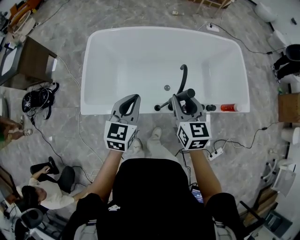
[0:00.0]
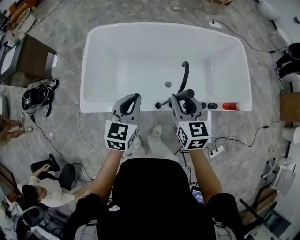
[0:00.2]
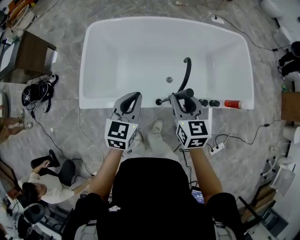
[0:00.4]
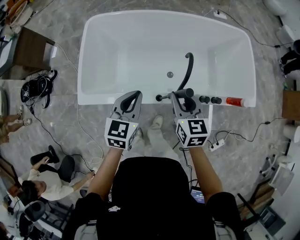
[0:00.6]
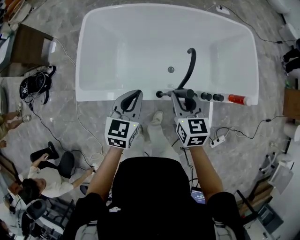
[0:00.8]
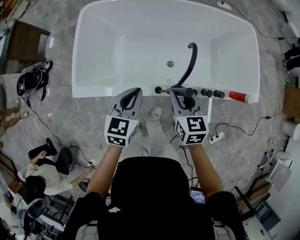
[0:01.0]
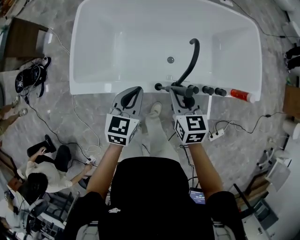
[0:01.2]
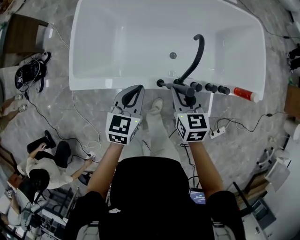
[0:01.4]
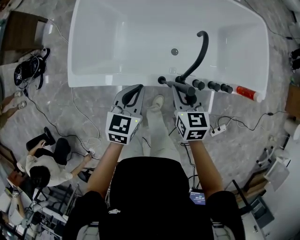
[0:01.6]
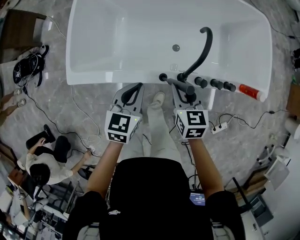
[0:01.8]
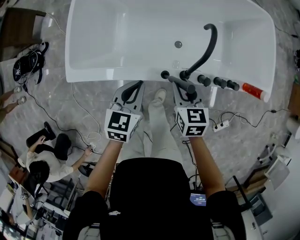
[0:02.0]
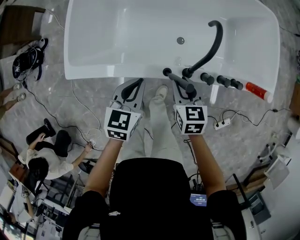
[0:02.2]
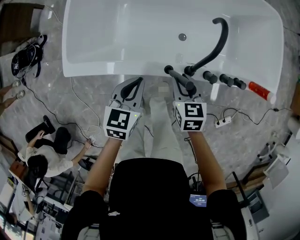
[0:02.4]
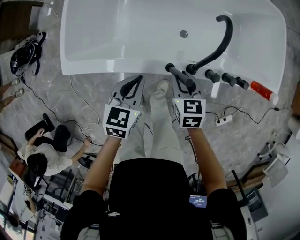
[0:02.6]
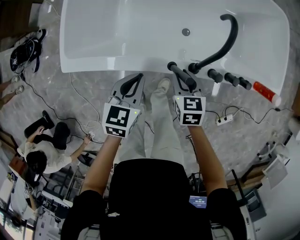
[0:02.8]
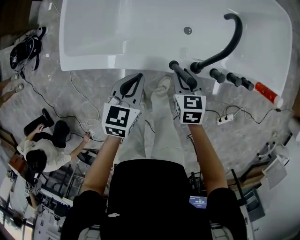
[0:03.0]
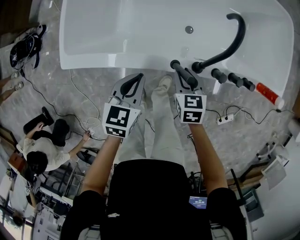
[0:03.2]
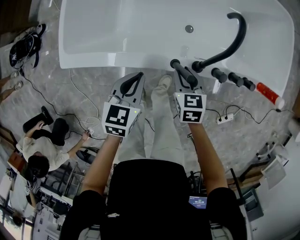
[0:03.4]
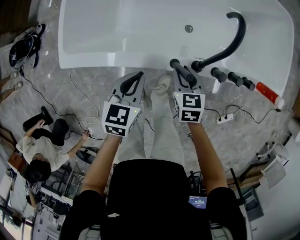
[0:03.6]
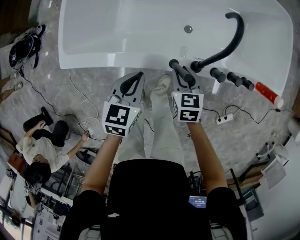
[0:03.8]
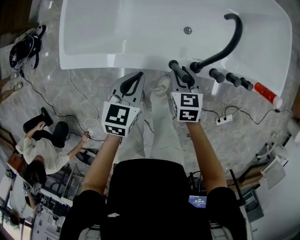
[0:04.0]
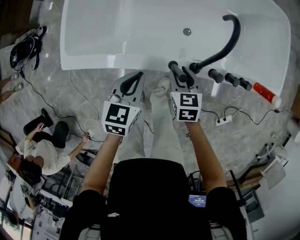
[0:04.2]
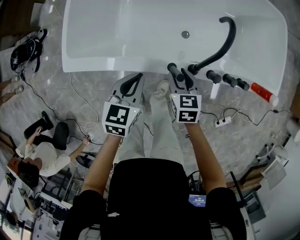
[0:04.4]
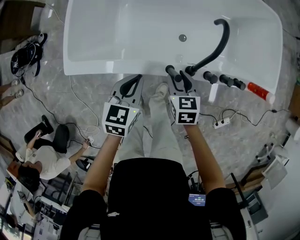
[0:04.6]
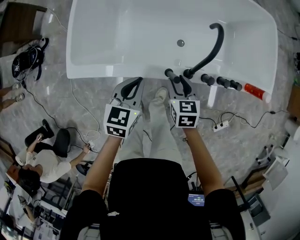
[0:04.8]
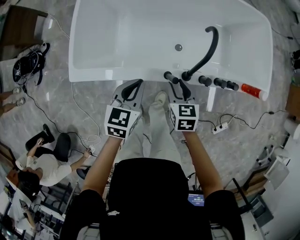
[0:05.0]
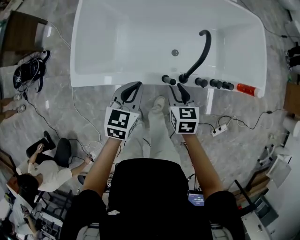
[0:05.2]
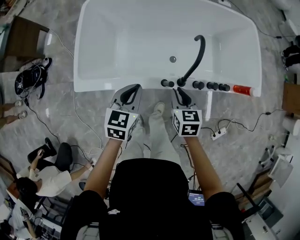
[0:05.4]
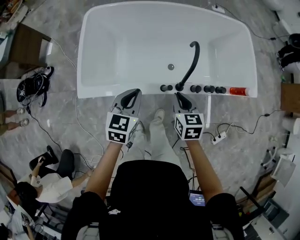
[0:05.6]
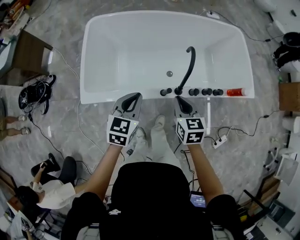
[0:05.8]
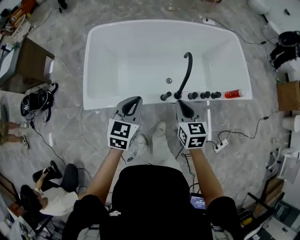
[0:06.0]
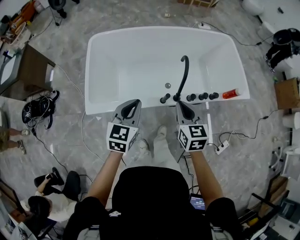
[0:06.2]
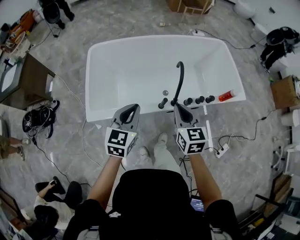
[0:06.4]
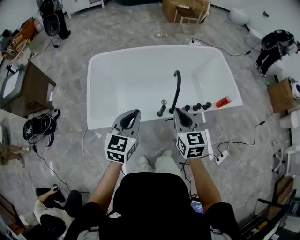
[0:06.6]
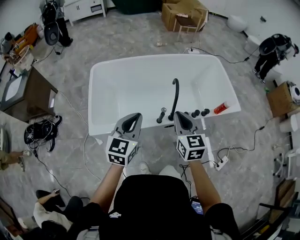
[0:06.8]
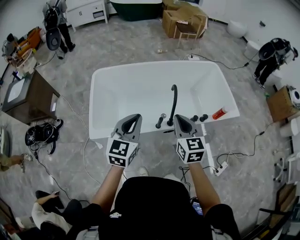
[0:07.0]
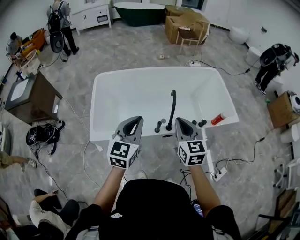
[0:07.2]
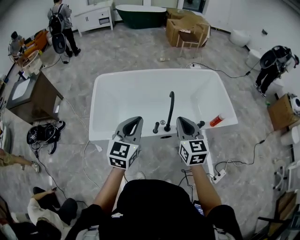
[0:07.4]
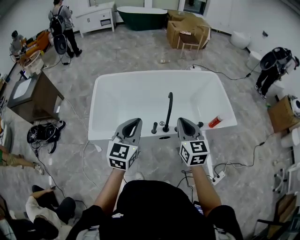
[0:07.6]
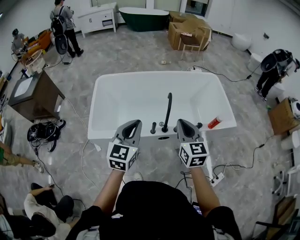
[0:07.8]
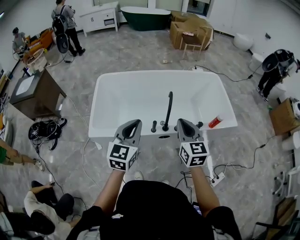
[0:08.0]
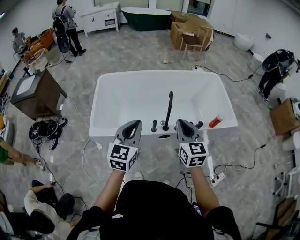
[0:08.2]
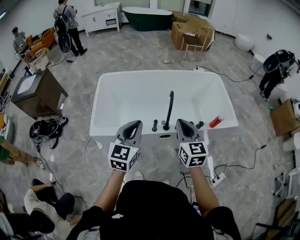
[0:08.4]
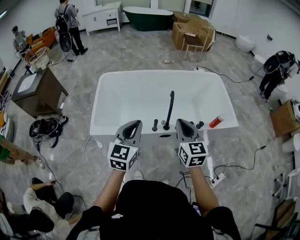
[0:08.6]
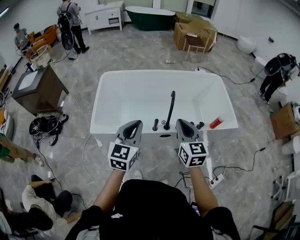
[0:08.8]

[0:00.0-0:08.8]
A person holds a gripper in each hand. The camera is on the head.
0.0 to 1.4 s: The two grippers go approximately 15 cm downward.
1.4 to 3.0 s: Both grippers move downward, about 15 cm.
3.0 to 4.4 s: The grippers move only a little.
4.4 to 5.8 s: Both grippers move upward, roughly 20 cm. The right gripper closes up.
5.8 to 7.4 s: Both grippers move upward, about 20 cm. The left gripper changes its angle by approximately 20 degrees. The right gripper changes its angle by roughly 20 degrees.
7.4 to 8.8 s: The left gripper moves roughly 5 cm.

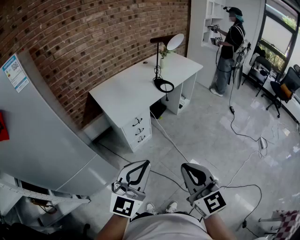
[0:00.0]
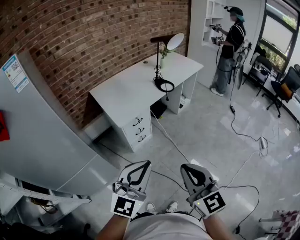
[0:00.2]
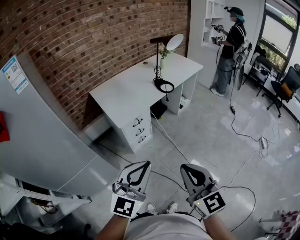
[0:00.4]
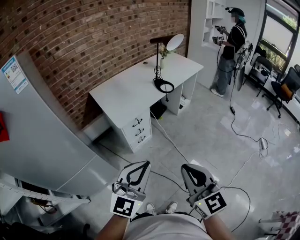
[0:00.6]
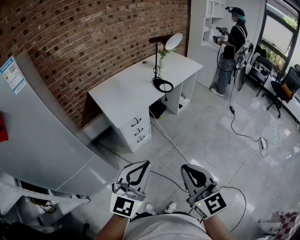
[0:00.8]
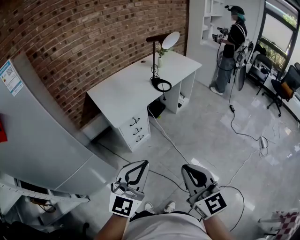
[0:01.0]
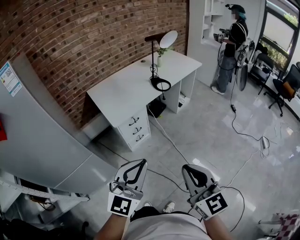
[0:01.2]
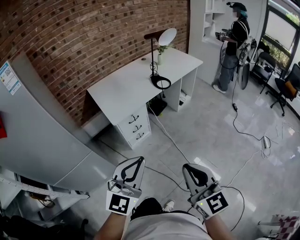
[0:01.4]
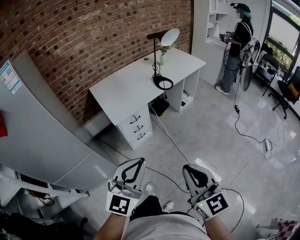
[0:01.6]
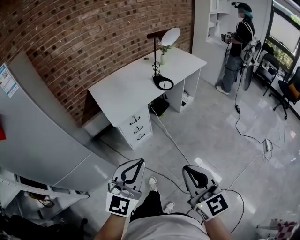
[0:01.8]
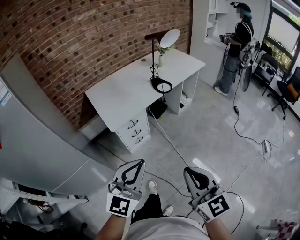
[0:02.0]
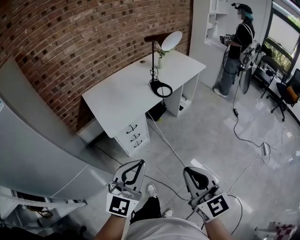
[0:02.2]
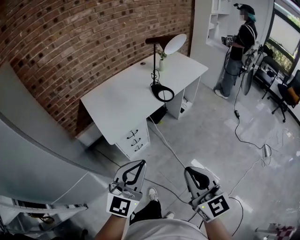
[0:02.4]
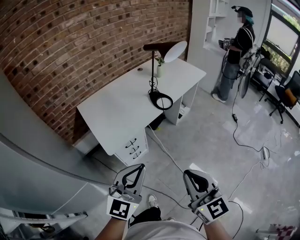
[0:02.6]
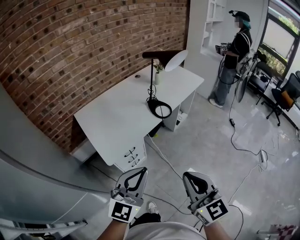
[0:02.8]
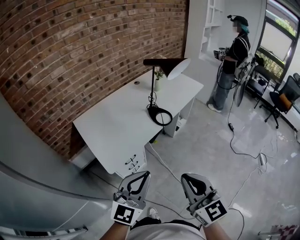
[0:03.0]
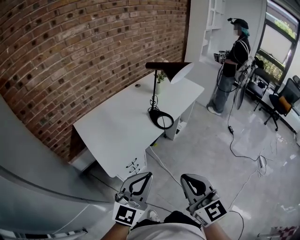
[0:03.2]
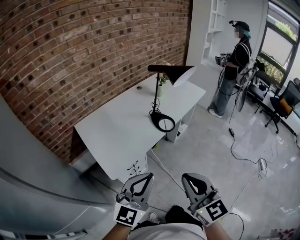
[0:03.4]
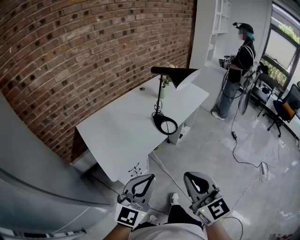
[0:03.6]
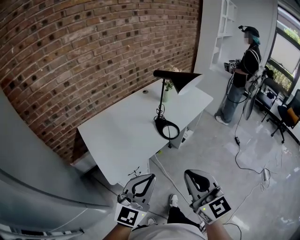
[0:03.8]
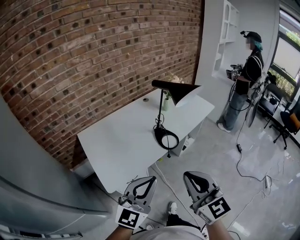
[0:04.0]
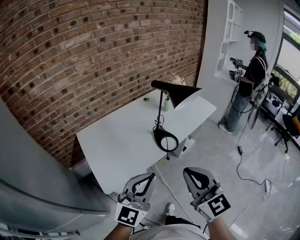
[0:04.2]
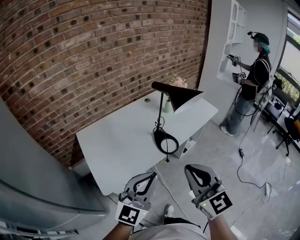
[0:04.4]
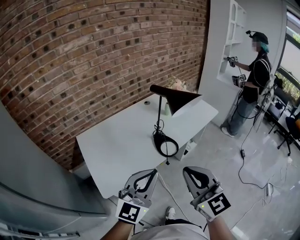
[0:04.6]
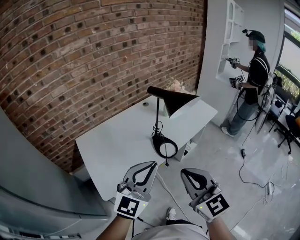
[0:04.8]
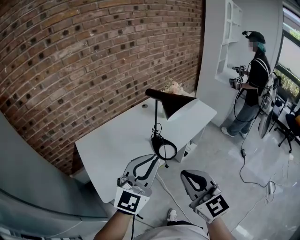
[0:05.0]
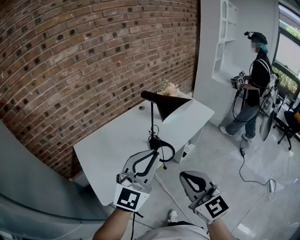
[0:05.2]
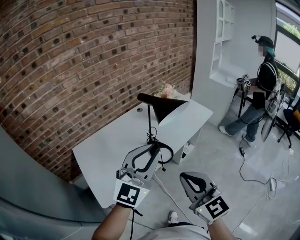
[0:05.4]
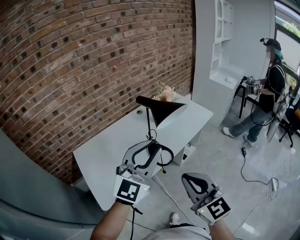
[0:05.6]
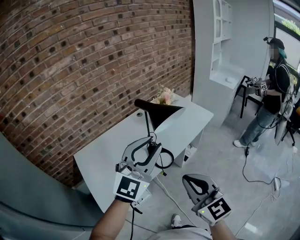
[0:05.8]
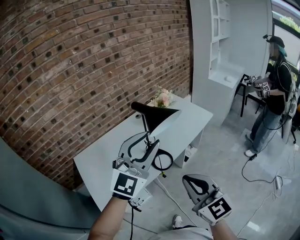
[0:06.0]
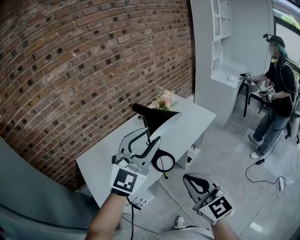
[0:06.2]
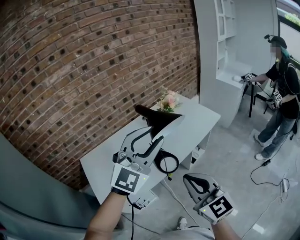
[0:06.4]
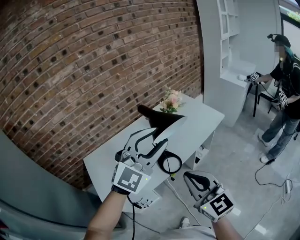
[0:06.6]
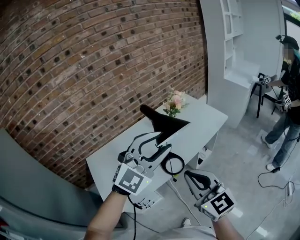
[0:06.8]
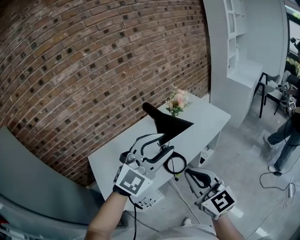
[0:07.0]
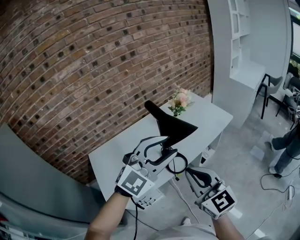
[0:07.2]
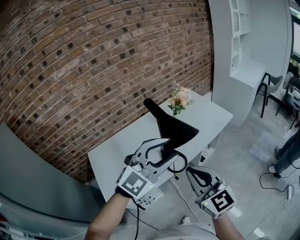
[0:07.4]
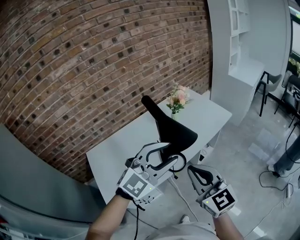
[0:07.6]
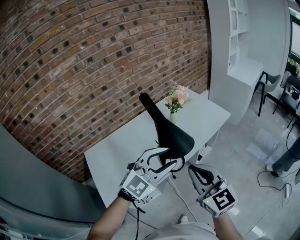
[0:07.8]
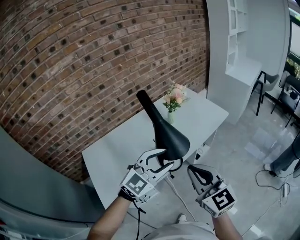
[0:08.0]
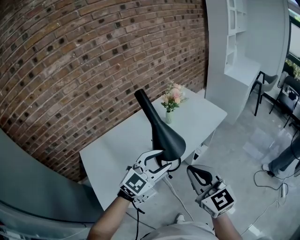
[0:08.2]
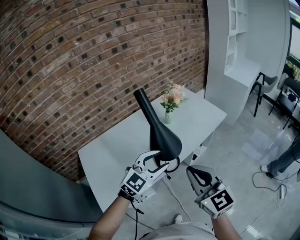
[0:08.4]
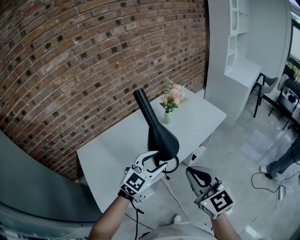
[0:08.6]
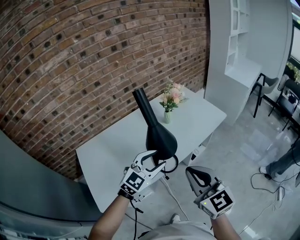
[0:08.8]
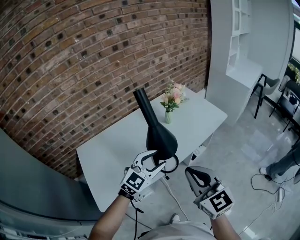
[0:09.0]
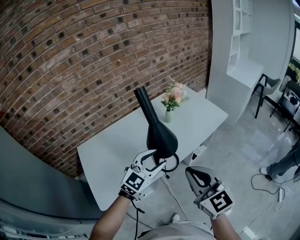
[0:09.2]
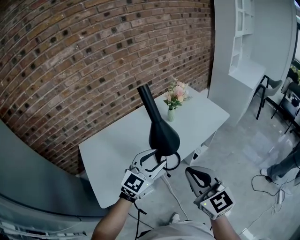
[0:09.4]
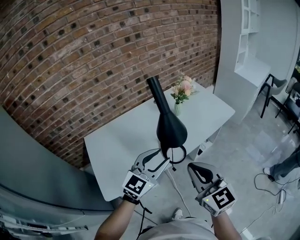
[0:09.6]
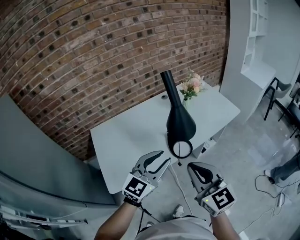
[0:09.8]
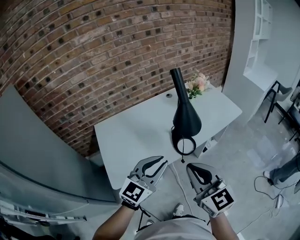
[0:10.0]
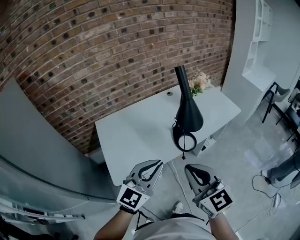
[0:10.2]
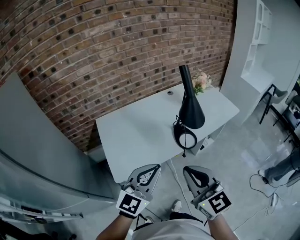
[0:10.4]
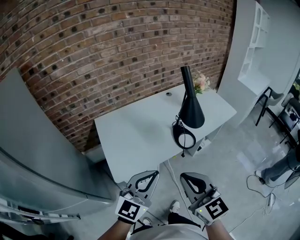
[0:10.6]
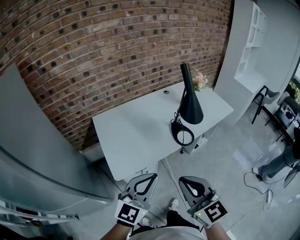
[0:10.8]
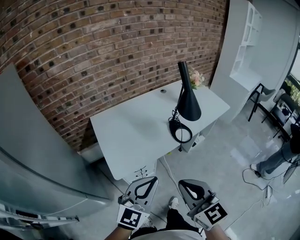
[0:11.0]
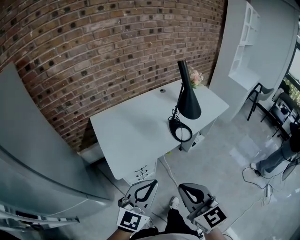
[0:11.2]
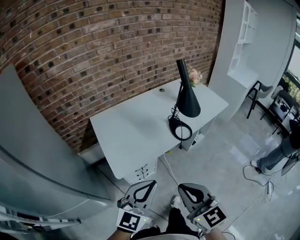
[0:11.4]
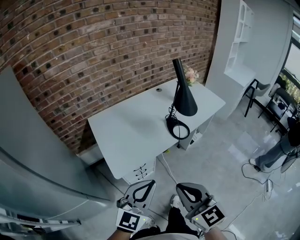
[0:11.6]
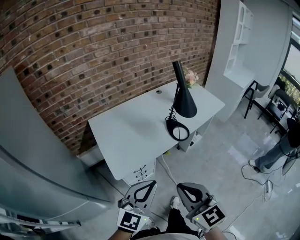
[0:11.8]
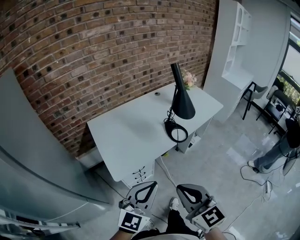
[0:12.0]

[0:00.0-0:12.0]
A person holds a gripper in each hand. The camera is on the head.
0.0 to 1.6 s: Both grippers move to the right, approximately 5 cm.
1.6 to 3.0 s: Both grippers move forward, about 25 cm.
3.0 to 4.4 s: The grippers both shift forward by roughly 20 cm.
4.4 to 6.0 s: The right gripper travels to the right and forward by roughly 10 cm. The left gripper is displaced forward, upward and to the right by roughly 20 cm, changes its angle by some 20 degrees, and opens up.
6.0 to 7.6 s: The right gripper travels forward by approximately 10 cm. Meanwhile the left gripper moves downward, some 5 cm.
7.6 to 9.0 s: The left gripper heads downward and forward, covering some 15 cm, and turns by approximately 20 degrees.
9.0 to 10.4 s: The grippers both shift backward and to the left by some 25 cm. The left gripper turns by some 20 degrees, and closes up.
10.4 to 12.0 s: The left gripper shifts approximately 10 cm backward. Meanwhile the right gripper is displaced backward and to the left by about 15 cm.

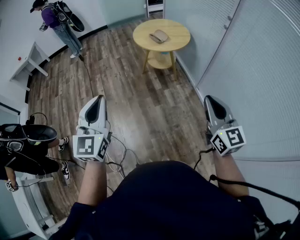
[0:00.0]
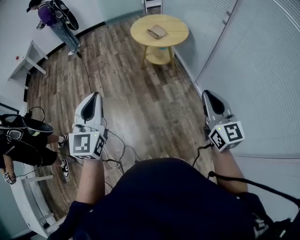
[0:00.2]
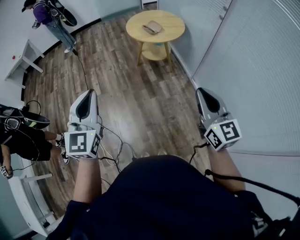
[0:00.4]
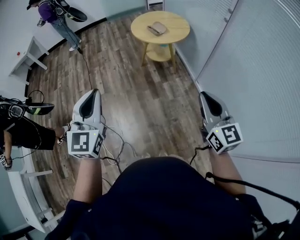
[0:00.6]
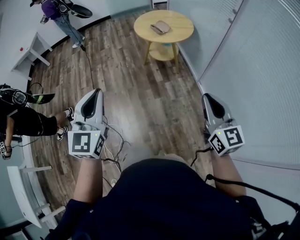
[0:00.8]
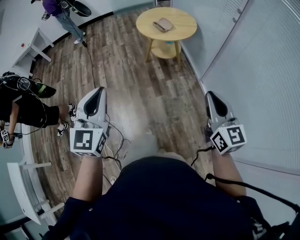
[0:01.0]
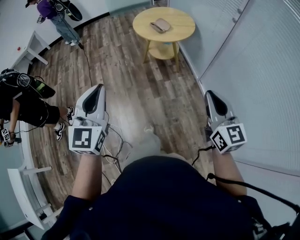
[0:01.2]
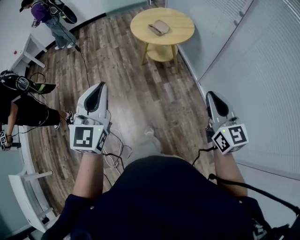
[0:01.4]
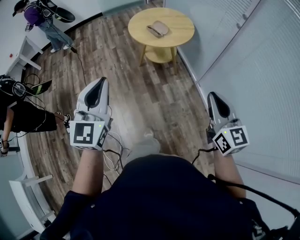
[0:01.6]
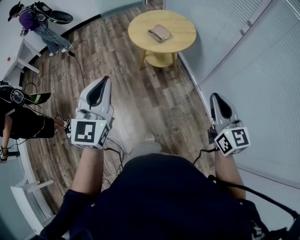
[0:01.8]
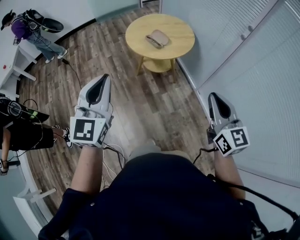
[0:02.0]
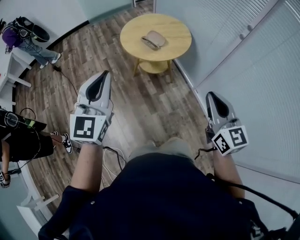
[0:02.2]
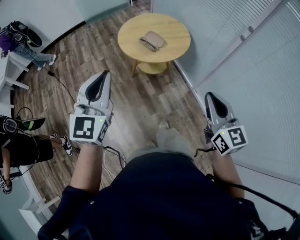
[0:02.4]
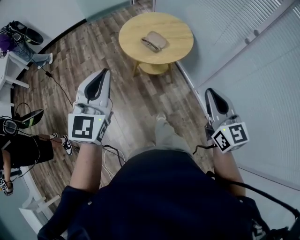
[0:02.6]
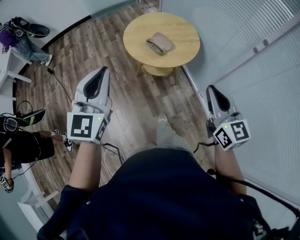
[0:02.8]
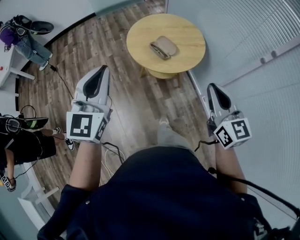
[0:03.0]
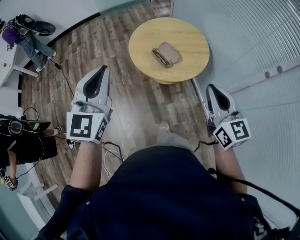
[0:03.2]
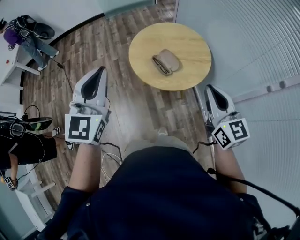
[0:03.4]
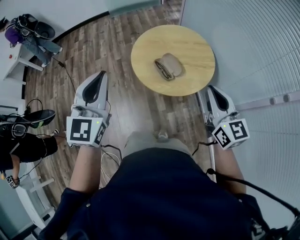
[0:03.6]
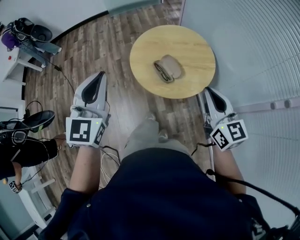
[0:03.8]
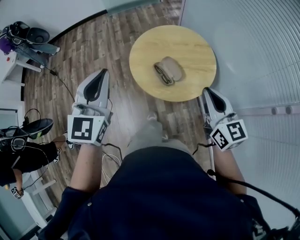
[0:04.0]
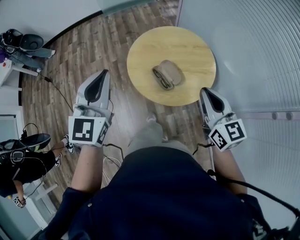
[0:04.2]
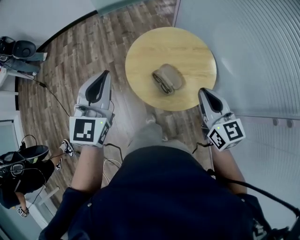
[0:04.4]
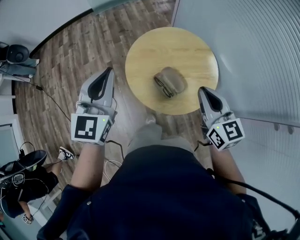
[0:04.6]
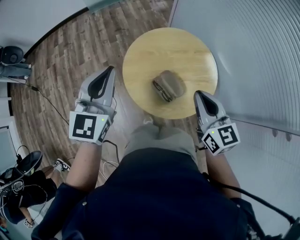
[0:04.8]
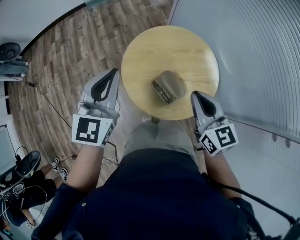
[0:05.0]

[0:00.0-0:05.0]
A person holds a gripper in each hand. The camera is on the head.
0.0 to 1.6 s: Both grippers travel together forward, roughly 20 cm.
1.6 to 3.4 s: The pair of grippers is taken forward, some 40 cm.
3.4 to 5.0 s: Both grippers move forward, about 25 cm.
